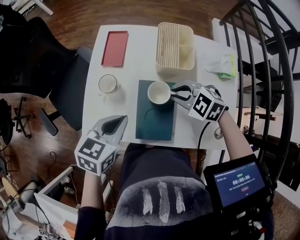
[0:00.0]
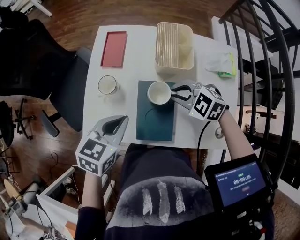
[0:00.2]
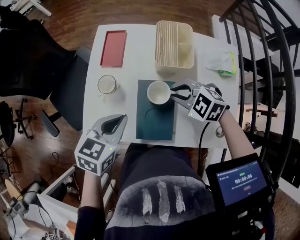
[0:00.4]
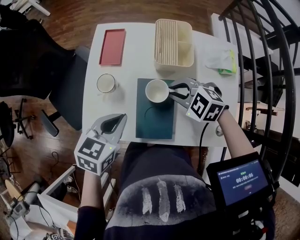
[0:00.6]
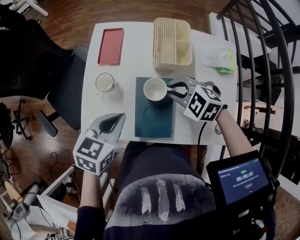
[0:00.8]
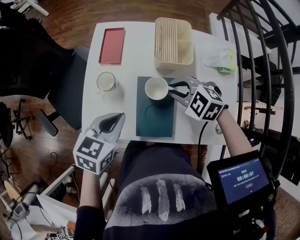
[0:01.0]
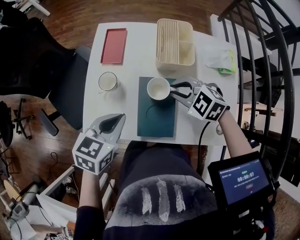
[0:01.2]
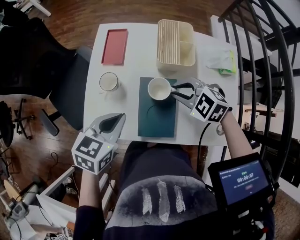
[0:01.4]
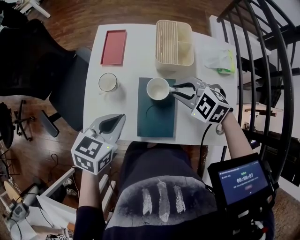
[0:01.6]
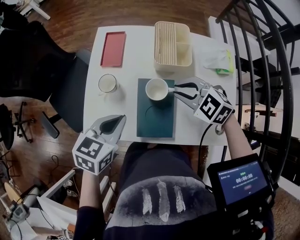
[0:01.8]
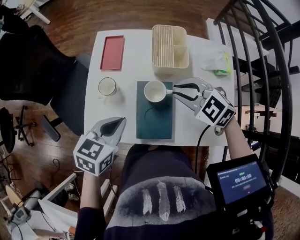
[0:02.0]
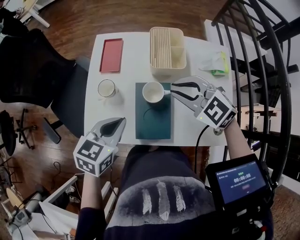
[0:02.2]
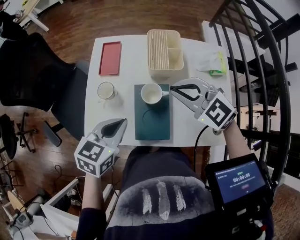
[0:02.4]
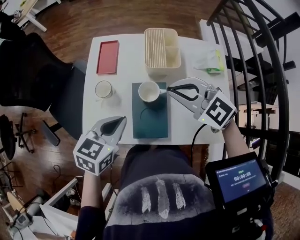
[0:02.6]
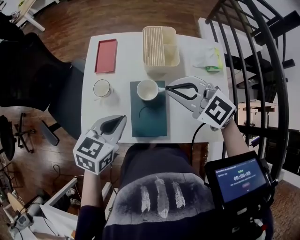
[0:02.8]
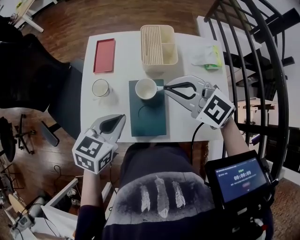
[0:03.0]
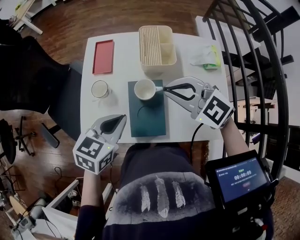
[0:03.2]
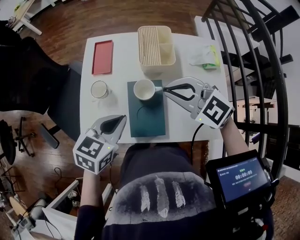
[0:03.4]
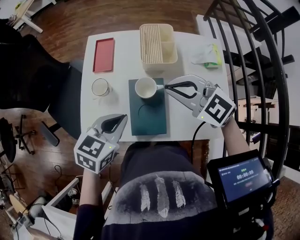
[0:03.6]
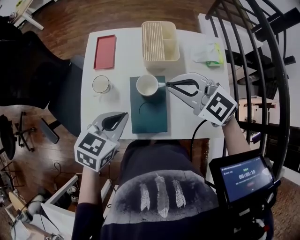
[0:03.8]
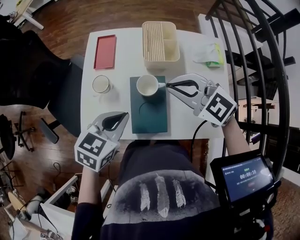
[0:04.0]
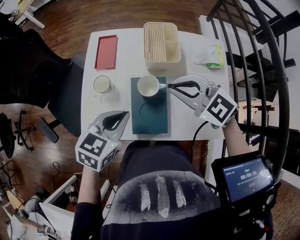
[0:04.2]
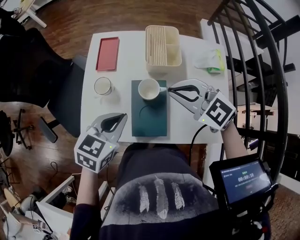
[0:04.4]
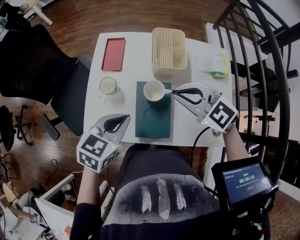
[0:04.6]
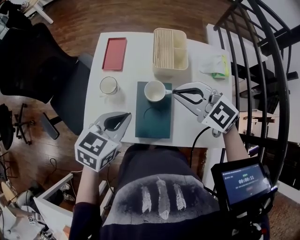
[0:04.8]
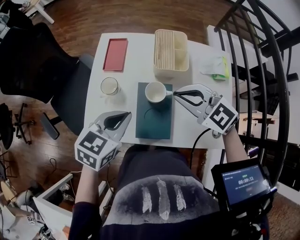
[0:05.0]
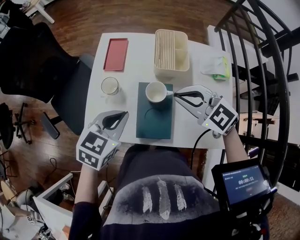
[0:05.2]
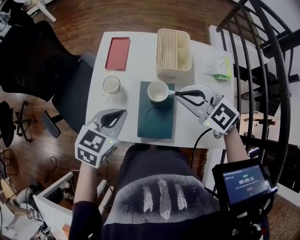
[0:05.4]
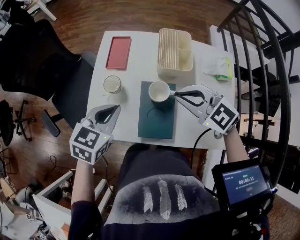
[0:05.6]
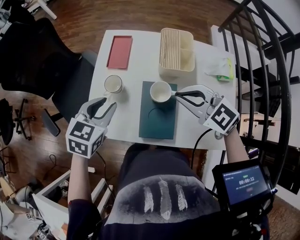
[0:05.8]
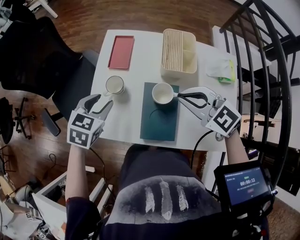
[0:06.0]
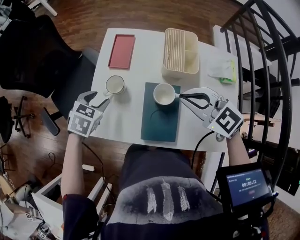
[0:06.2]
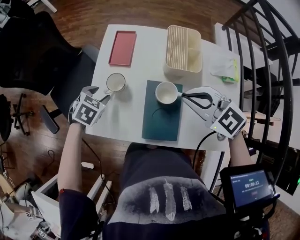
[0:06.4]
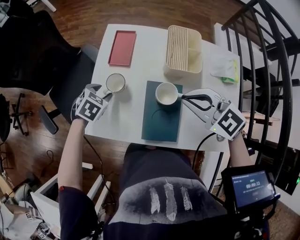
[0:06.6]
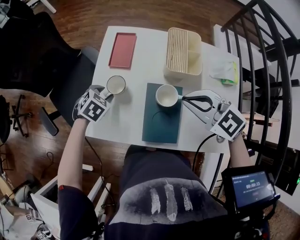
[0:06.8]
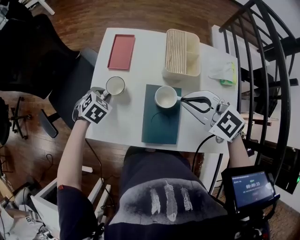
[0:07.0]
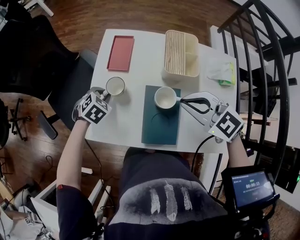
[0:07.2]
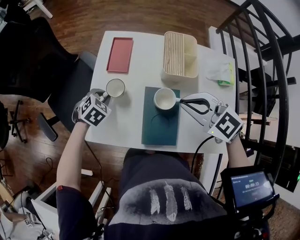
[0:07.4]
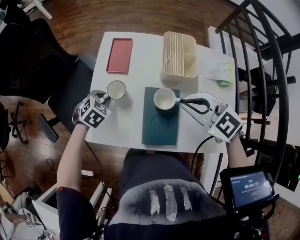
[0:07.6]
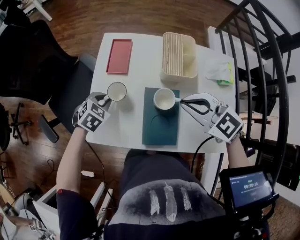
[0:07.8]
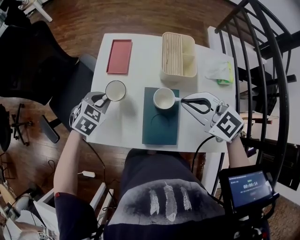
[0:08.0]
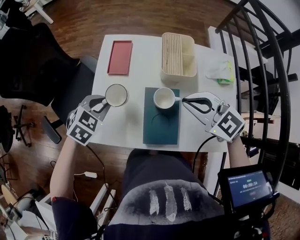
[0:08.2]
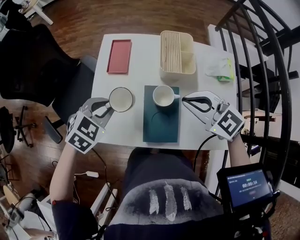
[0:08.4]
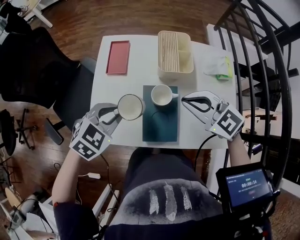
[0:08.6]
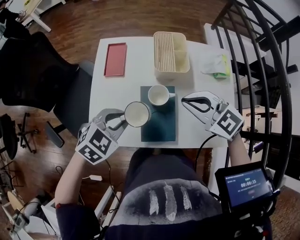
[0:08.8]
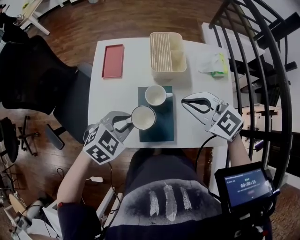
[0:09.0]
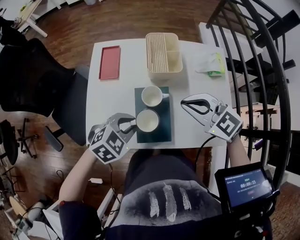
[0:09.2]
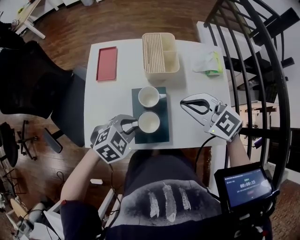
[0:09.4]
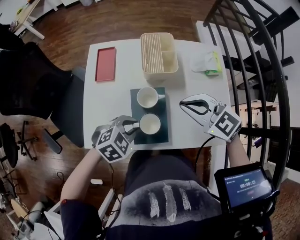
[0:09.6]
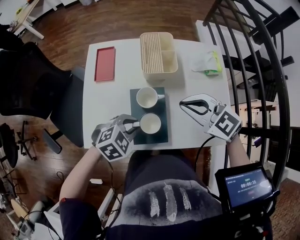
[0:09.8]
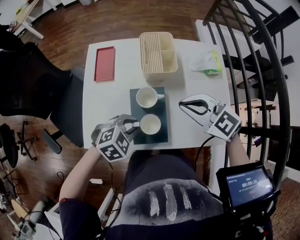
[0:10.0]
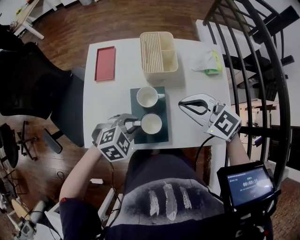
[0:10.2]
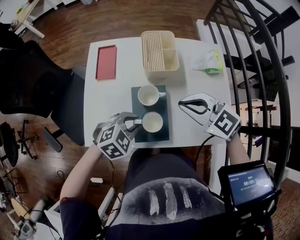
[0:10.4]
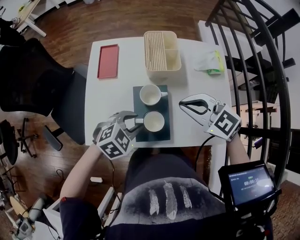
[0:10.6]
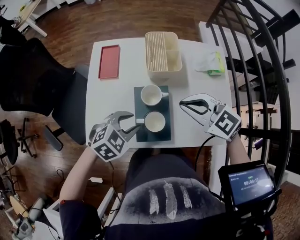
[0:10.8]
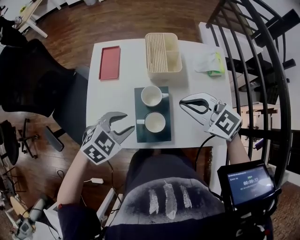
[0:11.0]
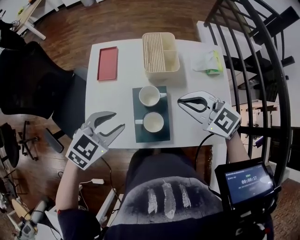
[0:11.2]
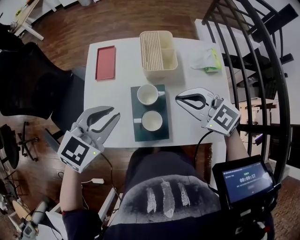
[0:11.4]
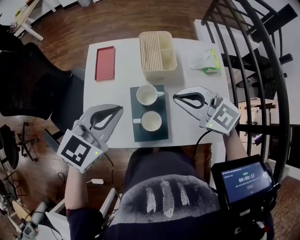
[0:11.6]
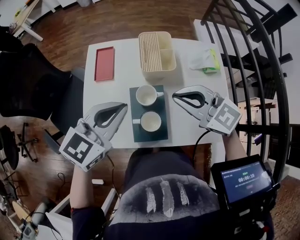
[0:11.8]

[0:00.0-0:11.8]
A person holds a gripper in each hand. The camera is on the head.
0:00.0 to 0:01.4: The grippers stay close to where they were, moving slightly.
0:01.4 to 0:03.0: The right gripper travels upward by approximately 10 cm, and swivels roughly 30 degrees.
0:03.0 to 0:04.4: The grippers stay close to where they were, moving slightly.
0:04.4 to 0:06.0: The left gripper shifts approximately 15 cm to the left and forward, and opens.
0:06.0 to 0:07.4: The left gripper is displaced downward and forward by approximately 15 cm, rotates approximately 30 degrees, and closes.
0:07.4 to 0:08.8: The left gripper is displaced upward, backward and to the right by approximately 20 cm, and rotates roughly 20 degrees.
0:08.8 to 0:10.4: The left gripper changes place by some 10 cm.
0:10.4 to 0:11.8: The right gripper moves upward, some 5 cm. The left gripper heads upward, covering approximately 20 cm, tilts its fingers about 30 degrees upward, and opens, then closes again.

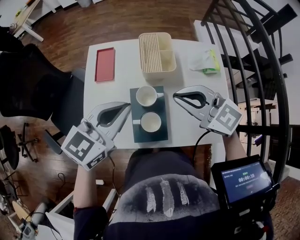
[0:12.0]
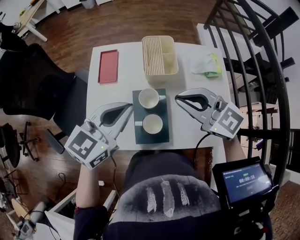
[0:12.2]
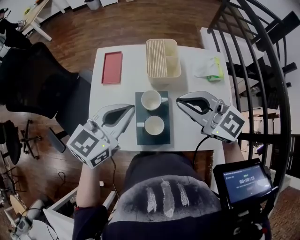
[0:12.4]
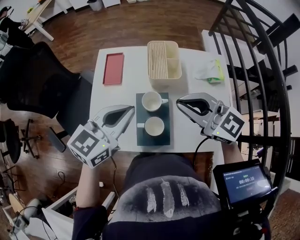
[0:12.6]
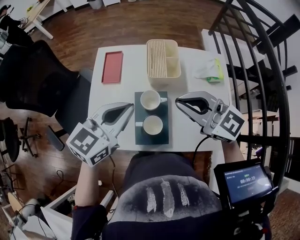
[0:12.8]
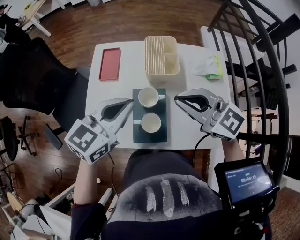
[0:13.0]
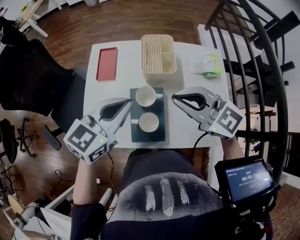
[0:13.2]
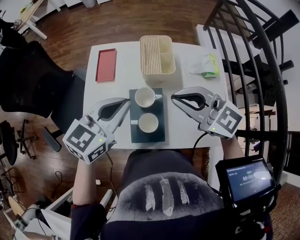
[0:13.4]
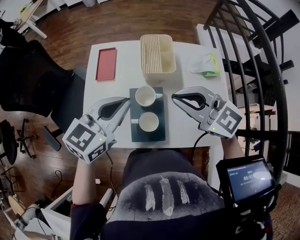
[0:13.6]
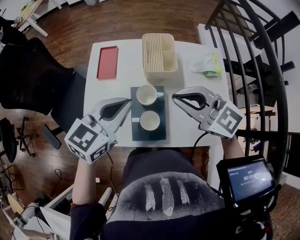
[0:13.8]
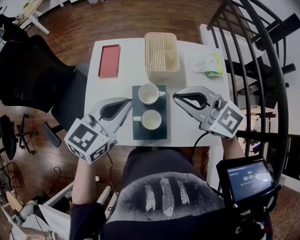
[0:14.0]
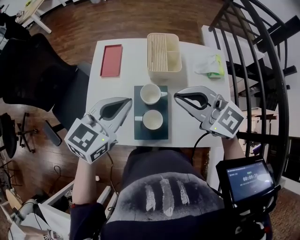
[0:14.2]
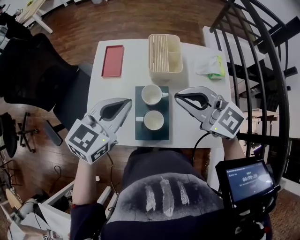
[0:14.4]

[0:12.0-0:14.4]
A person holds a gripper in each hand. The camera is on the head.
0:12.0 to 0:14.4: The grippers stay close to where they were, moving slightly.

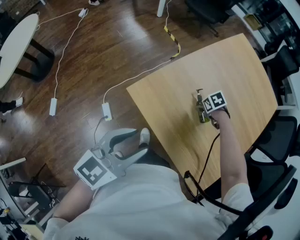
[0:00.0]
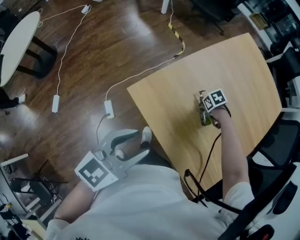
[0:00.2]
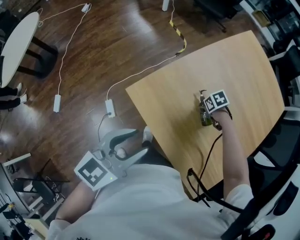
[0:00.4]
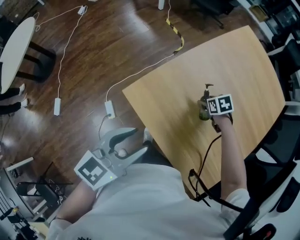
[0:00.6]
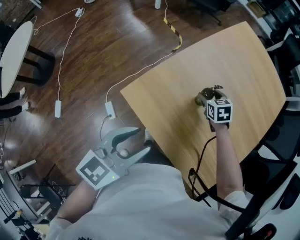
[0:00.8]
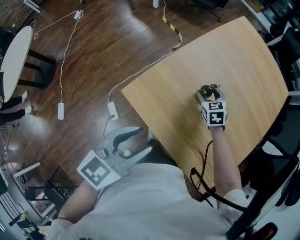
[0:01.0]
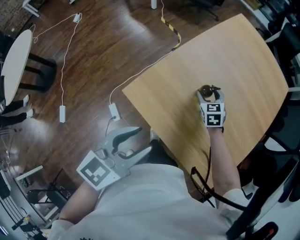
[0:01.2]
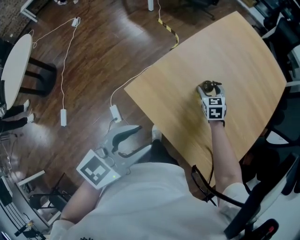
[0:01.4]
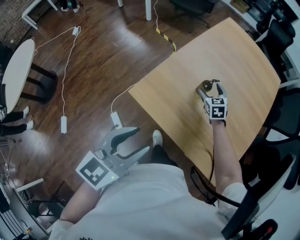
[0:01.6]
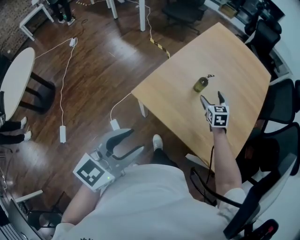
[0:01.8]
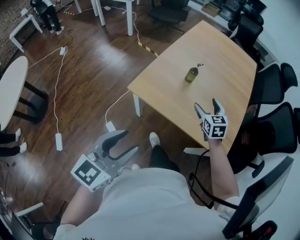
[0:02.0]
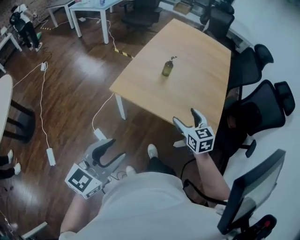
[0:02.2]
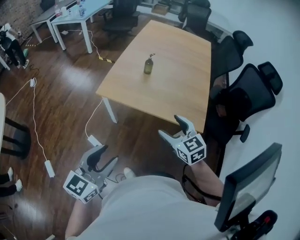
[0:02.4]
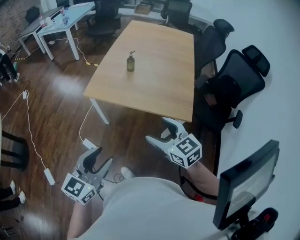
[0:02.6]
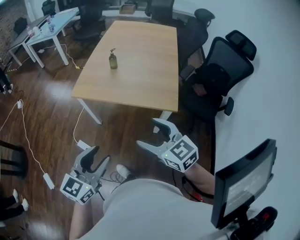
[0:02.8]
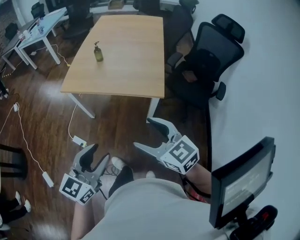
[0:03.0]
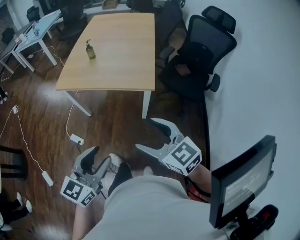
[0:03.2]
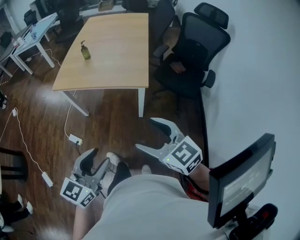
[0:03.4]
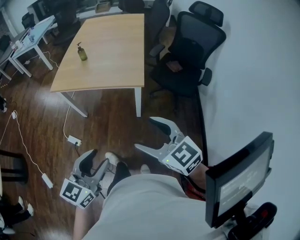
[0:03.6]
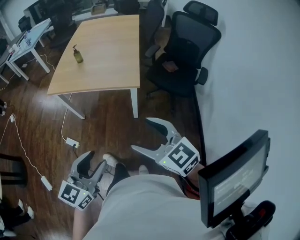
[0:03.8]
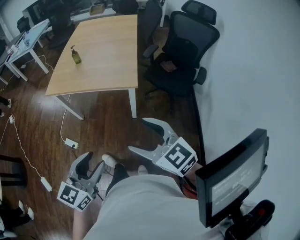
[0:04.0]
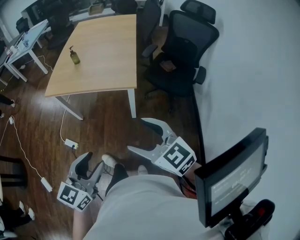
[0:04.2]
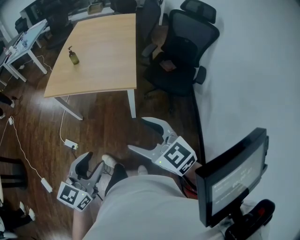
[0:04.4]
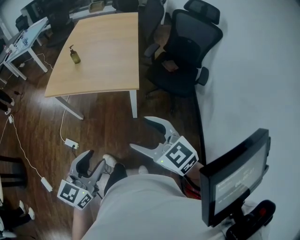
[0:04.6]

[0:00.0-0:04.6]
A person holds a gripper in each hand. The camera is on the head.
0:00.0 to 0:01.6: The right gripper travels upward by roughly 10 cm, and tips its fingers upward by about 40 degrees.
0:01.6 to 0:03.0: The left gripper travels backward by about 30 cm, and changes its angle by approximately 20 degrees; the right gripper goes roughly 60 cm backward, and swivels roughly 20 degrees.
0:03.0 to 0:04.6: The grippers both shift to the right and backward by about 10 cm.

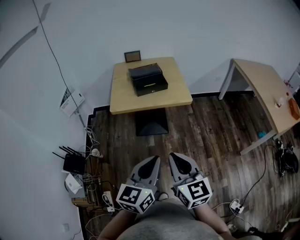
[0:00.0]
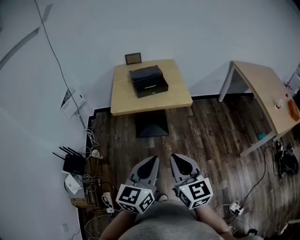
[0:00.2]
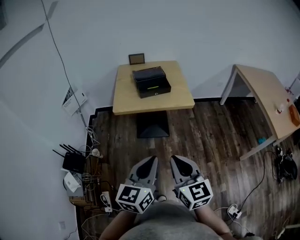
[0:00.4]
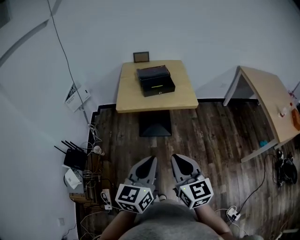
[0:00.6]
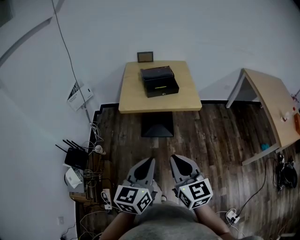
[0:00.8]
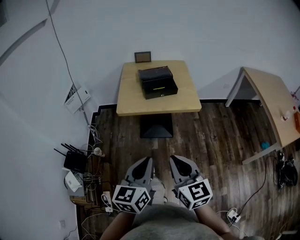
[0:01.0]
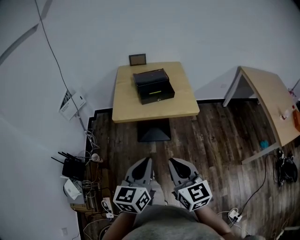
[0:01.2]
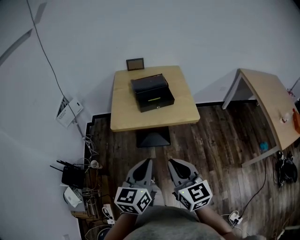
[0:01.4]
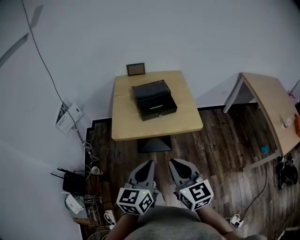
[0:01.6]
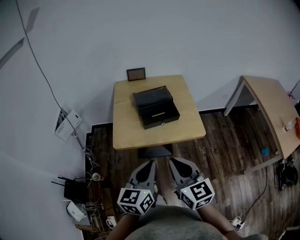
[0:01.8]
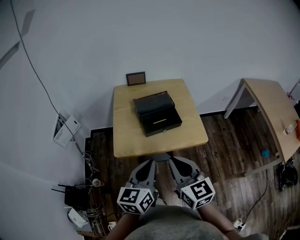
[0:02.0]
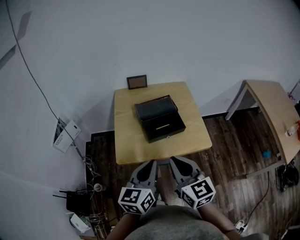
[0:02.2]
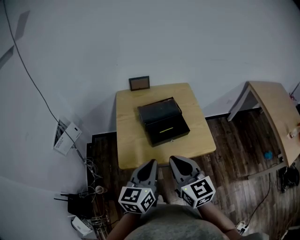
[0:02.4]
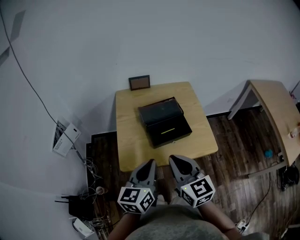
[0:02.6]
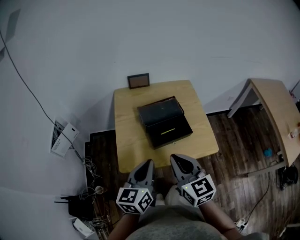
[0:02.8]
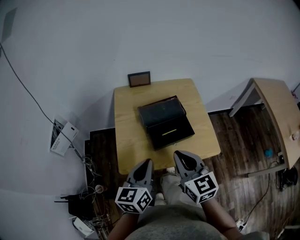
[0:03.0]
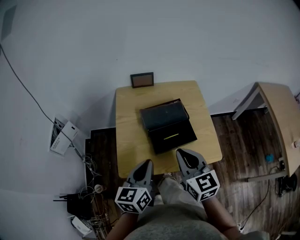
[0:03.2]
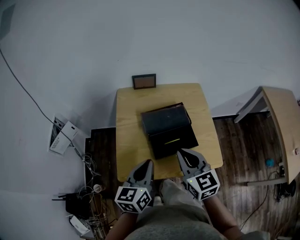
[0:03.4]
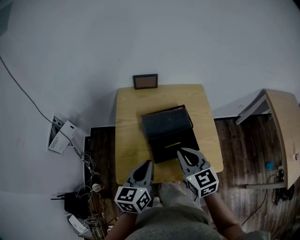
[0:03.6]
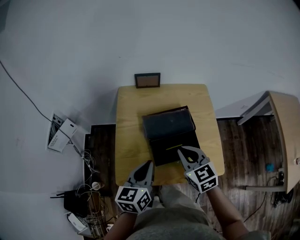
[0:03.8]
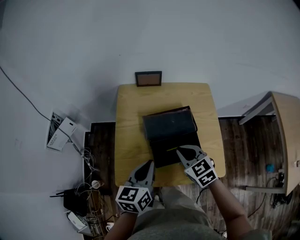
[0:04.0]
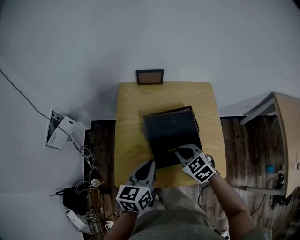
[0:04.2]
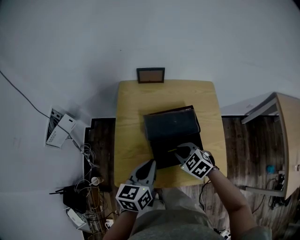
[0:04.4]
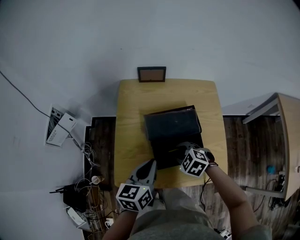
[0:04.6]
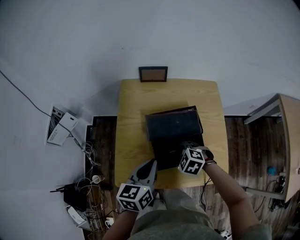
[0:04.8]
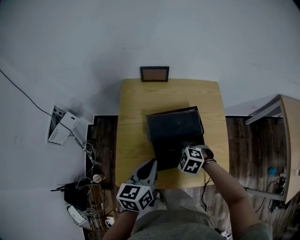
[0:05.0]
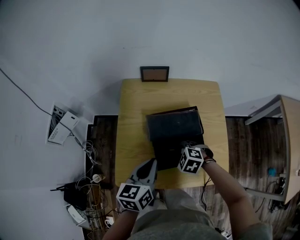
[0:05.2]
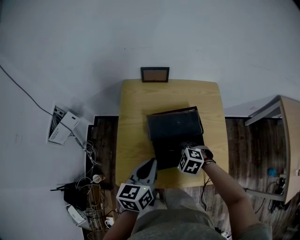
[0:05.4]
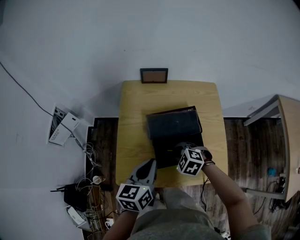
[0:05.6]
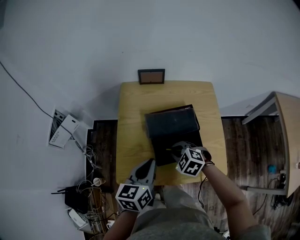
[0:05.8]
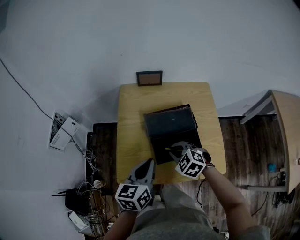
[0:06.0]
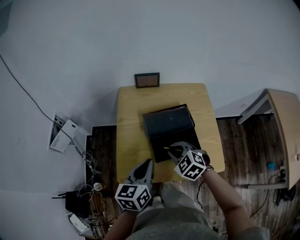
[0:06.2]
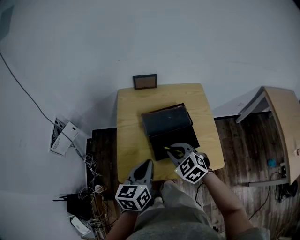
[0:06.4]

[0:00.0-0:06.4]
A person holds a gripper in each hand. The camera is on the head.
0:00.0 to 0:01.6: Both grippers travel together forward, roughly 20 cm.
0:01.6 to 0:03.2: The two grippers go some 30 cm forward.
0:03.2 to 0:04.8: The right gripper moves downward and forward, about 25 cm, angles its fingers downward, by about 50 degrees, and opens its fingers. The left gripper heads forward and downward, covering roughly 10 cm.
0:04.8 to 0:06.4: The right gripper shifts roughly 10 cm upward, and turns by about 30 degrees. Meanwhile the left gripper heads backward, covering roughly 5 cm.
